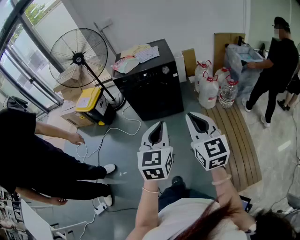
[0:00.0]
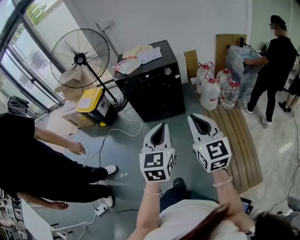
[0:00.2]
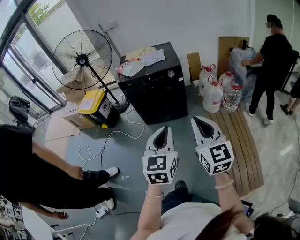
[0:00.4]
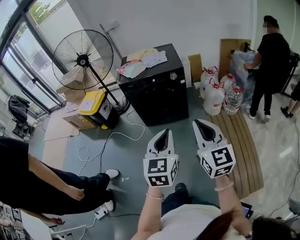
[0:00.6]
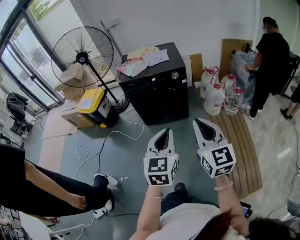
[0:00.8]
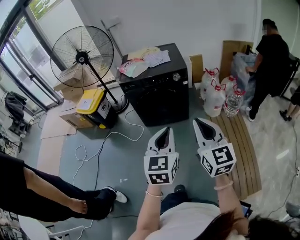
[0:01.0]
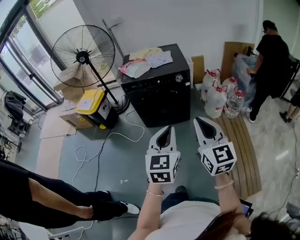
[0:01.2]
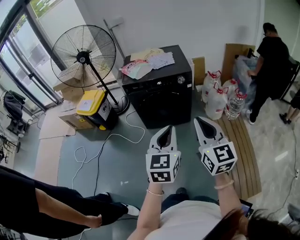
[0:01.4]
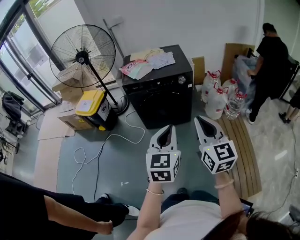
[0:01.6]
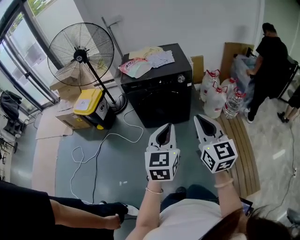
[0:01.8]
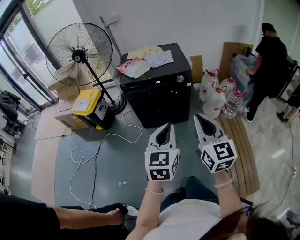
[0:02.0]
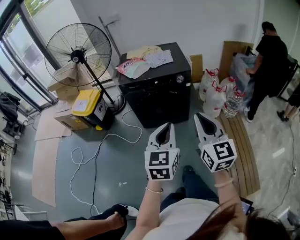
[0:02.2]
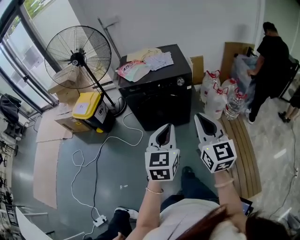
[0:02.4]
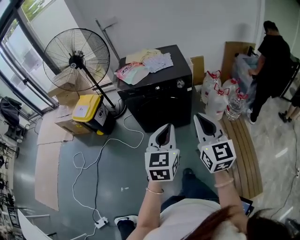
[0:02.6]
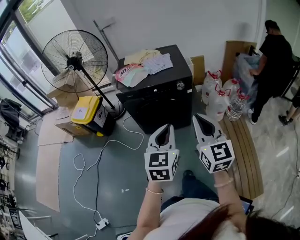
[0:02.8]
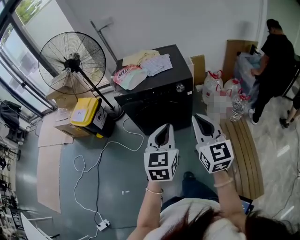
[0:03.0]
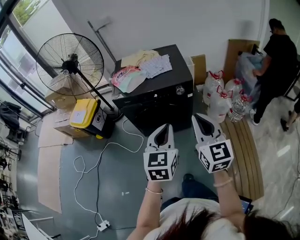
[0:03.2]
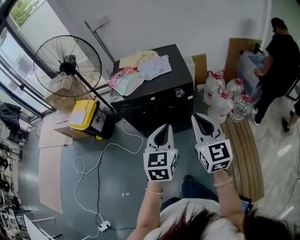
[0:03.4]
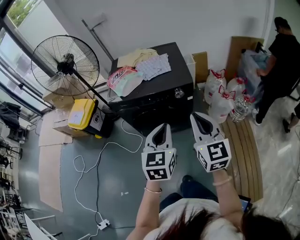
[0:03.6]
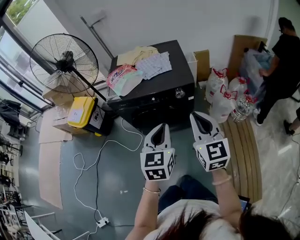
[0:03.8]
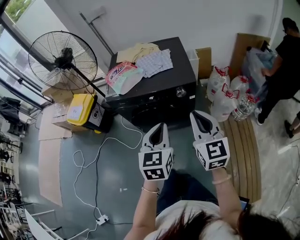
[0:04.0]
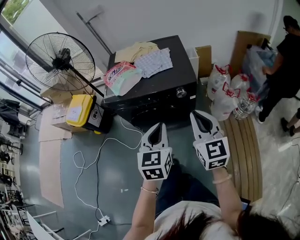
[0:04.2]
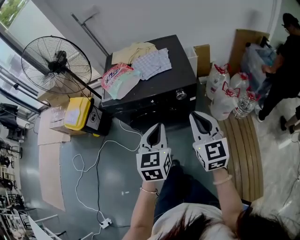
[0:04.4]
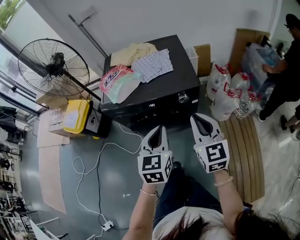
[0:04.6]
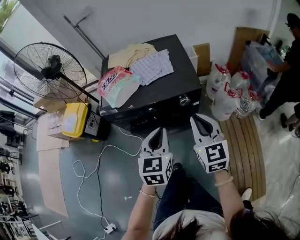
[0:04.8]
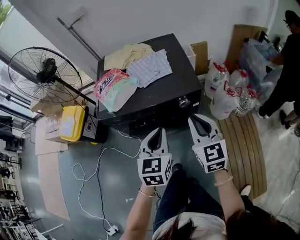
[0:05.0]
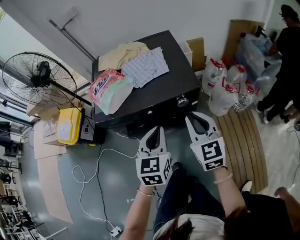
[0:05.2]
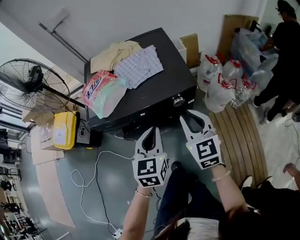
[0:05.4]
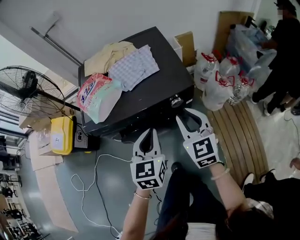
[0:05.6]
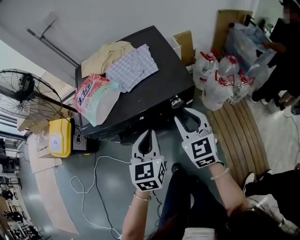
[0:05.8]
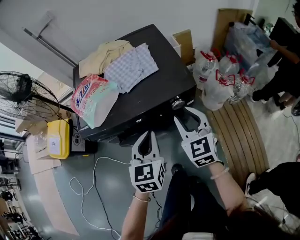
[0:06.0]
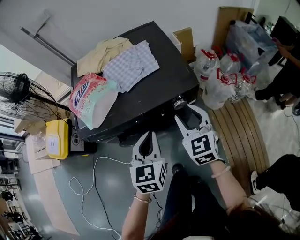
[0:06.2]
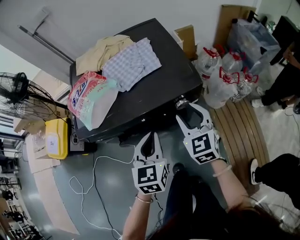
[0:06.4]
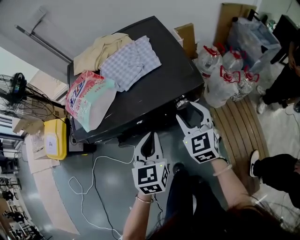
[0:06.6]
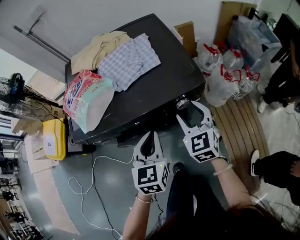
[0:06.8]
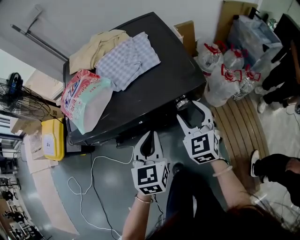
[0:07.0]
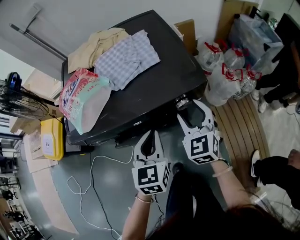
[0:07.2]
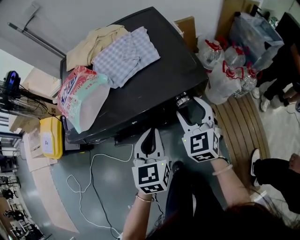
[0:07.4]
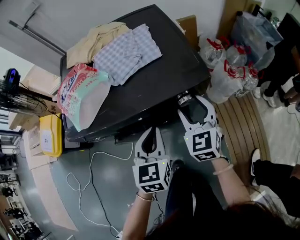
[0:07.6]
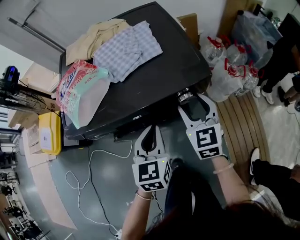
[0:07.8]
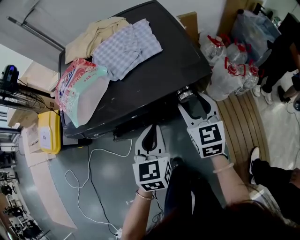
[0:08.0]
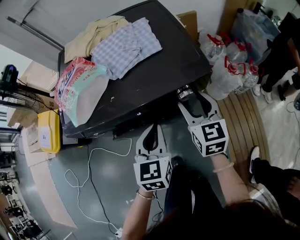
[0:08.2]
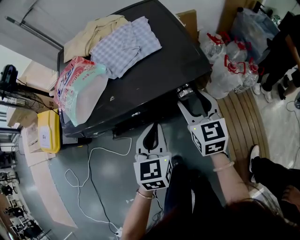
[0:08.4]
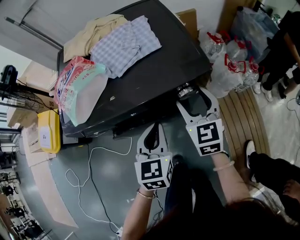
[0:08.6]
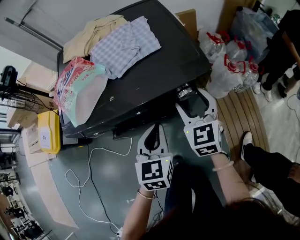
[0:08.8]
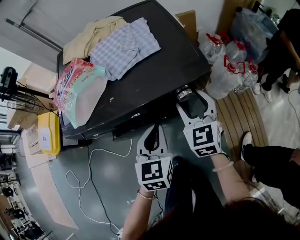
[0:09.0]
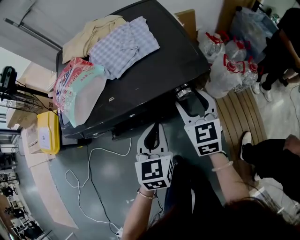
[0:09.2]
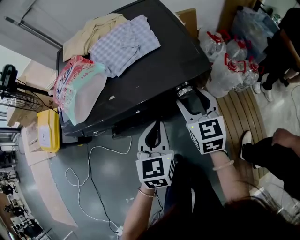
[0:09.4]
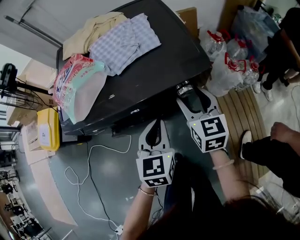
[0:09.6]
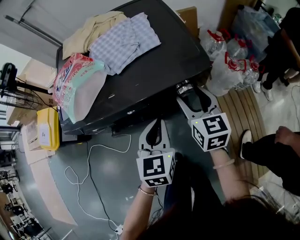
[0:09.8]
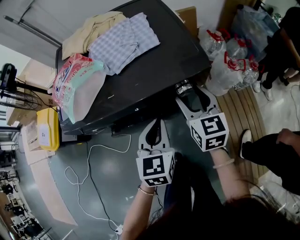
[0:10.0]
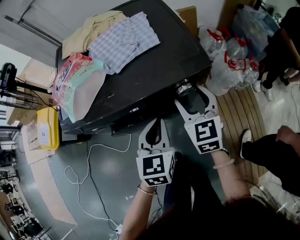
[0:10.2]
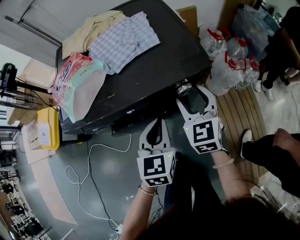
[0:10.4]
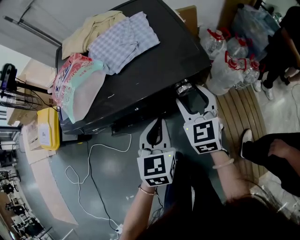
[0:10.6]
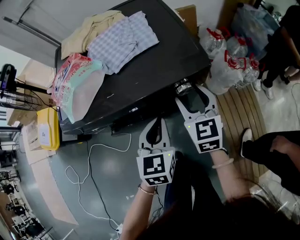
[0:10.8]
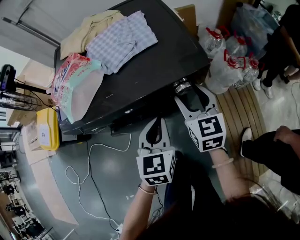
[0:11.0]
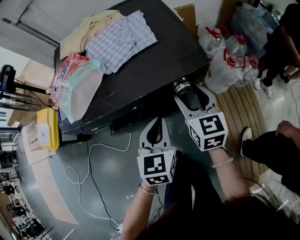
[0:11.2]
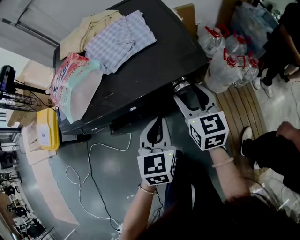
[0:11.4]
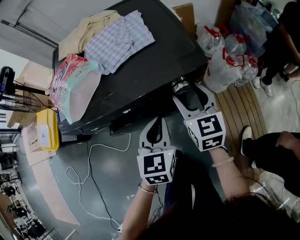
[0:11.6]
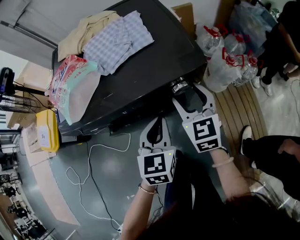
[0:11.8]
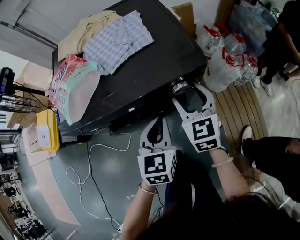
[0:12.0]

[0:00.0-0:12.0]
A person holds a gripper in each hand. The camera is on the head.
0:00.0 to 0:01.6: The two grippers go about 15 cm forward and to the left.
0:01.6 to 0:03.0: Both grippers move forward, about 15 cm.
0:03.0 to 0:04.4: The right gripper is displaced forward and downward by about 20 cm, while the left gripper travels forward by approximately 20 cm.
0:04.4 to 0:06.0: The two grippers go approximately 20 cm forward and downward. The right gripper opens its fingers.
0:06.0 to 0:07.6: The right gripper heads downward and forward, covering about 10 cm, and opens. The left gripper is displaced downward by about 10 cm.
0:07.6 to 0:09.0: The grippers make only small movements.

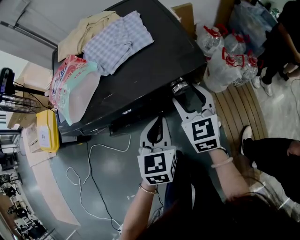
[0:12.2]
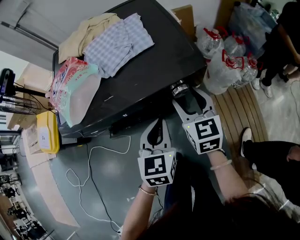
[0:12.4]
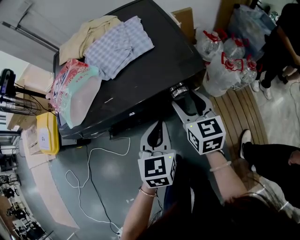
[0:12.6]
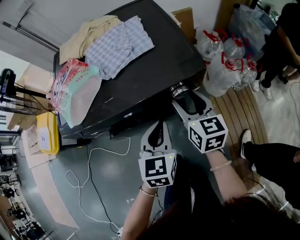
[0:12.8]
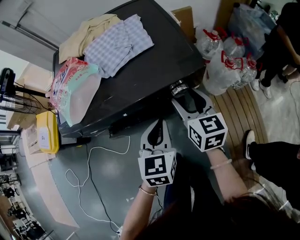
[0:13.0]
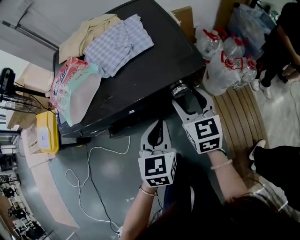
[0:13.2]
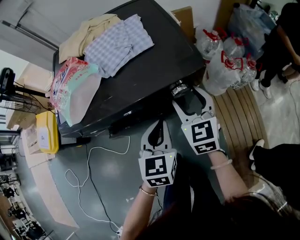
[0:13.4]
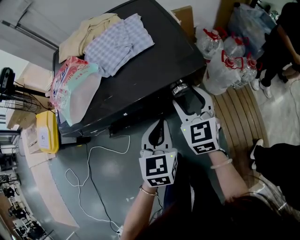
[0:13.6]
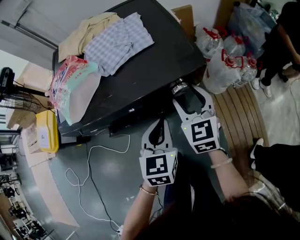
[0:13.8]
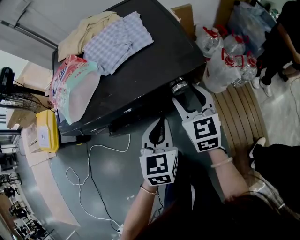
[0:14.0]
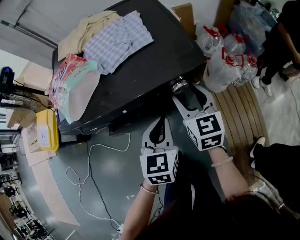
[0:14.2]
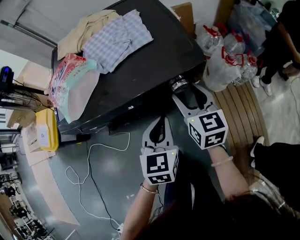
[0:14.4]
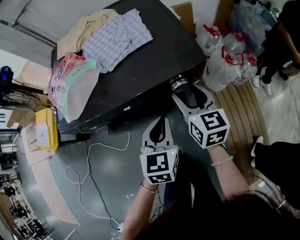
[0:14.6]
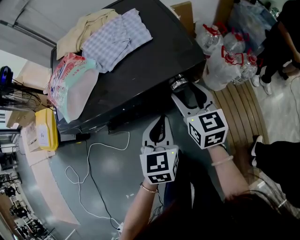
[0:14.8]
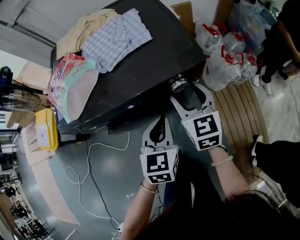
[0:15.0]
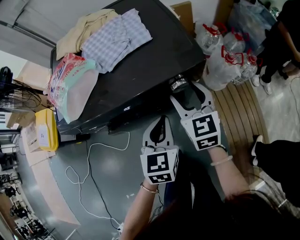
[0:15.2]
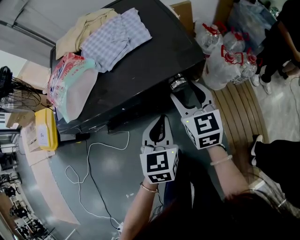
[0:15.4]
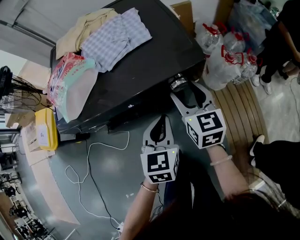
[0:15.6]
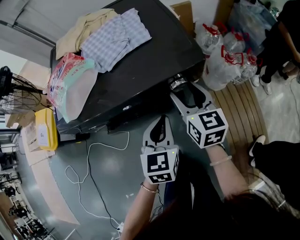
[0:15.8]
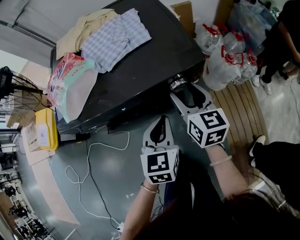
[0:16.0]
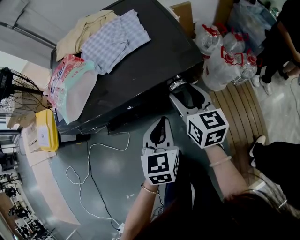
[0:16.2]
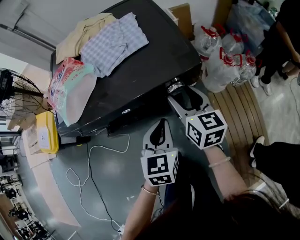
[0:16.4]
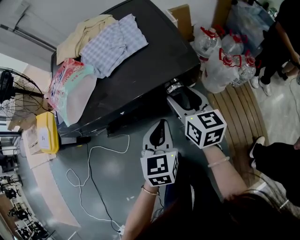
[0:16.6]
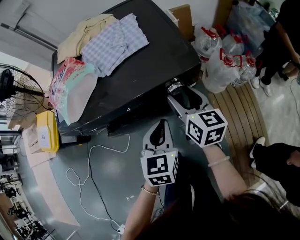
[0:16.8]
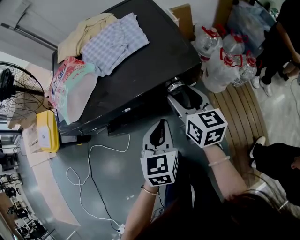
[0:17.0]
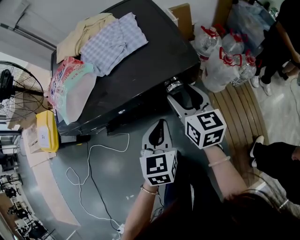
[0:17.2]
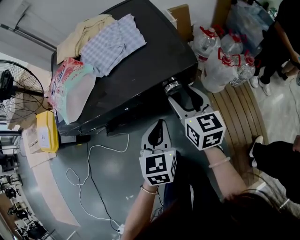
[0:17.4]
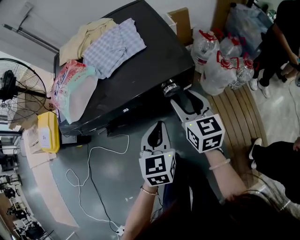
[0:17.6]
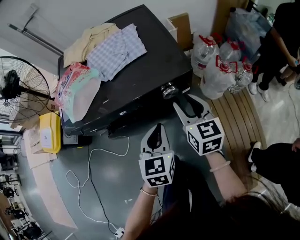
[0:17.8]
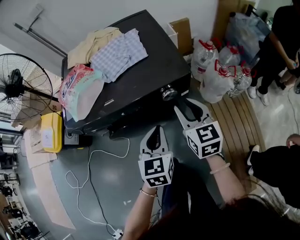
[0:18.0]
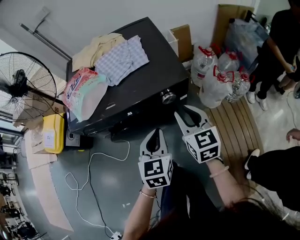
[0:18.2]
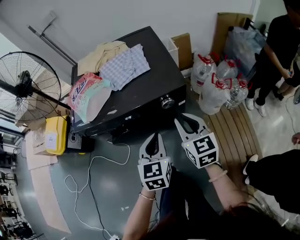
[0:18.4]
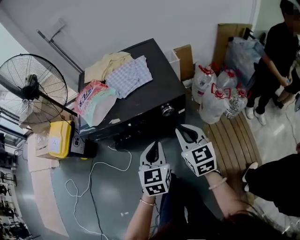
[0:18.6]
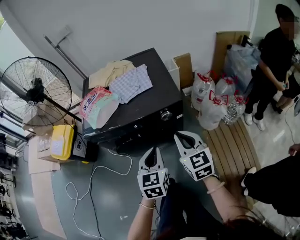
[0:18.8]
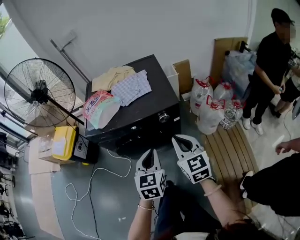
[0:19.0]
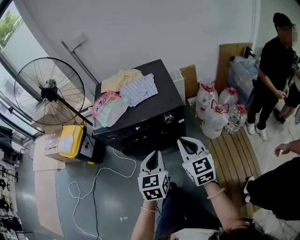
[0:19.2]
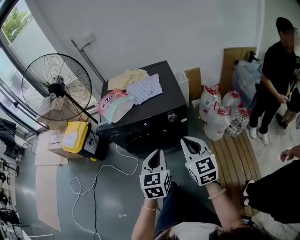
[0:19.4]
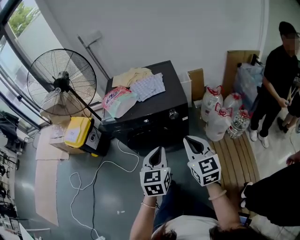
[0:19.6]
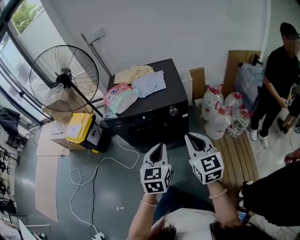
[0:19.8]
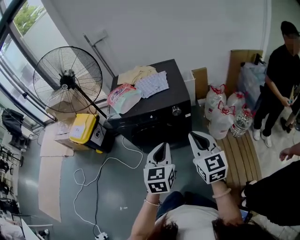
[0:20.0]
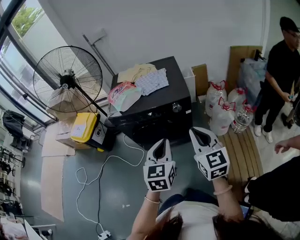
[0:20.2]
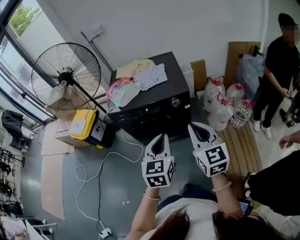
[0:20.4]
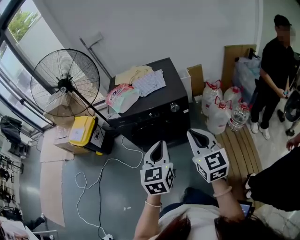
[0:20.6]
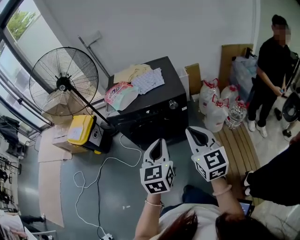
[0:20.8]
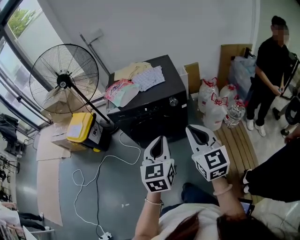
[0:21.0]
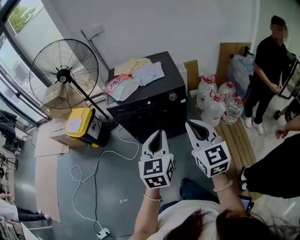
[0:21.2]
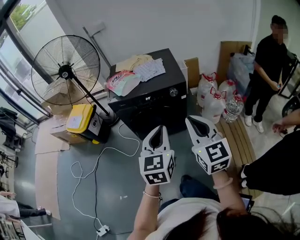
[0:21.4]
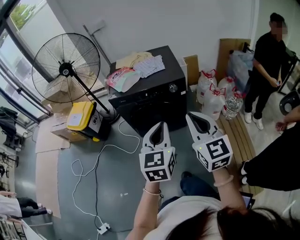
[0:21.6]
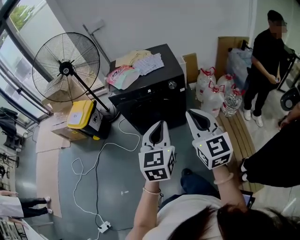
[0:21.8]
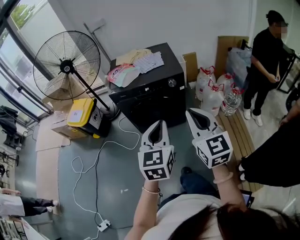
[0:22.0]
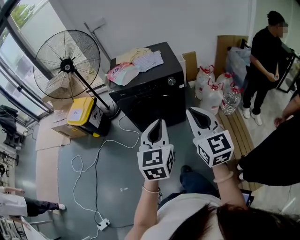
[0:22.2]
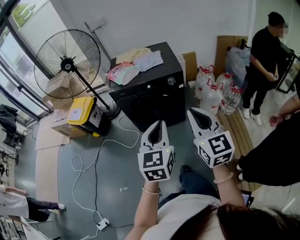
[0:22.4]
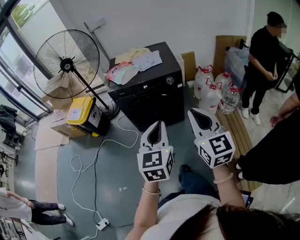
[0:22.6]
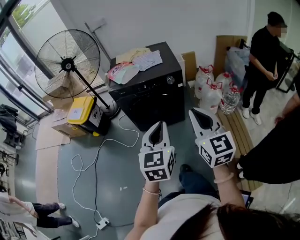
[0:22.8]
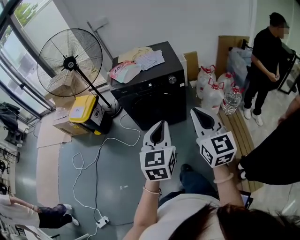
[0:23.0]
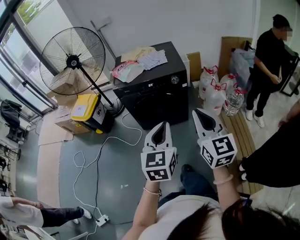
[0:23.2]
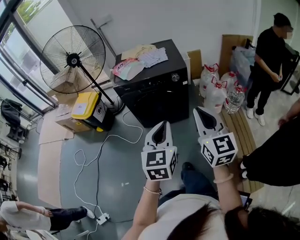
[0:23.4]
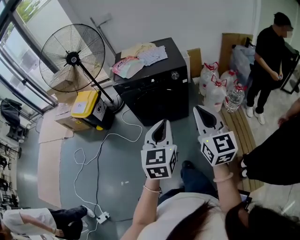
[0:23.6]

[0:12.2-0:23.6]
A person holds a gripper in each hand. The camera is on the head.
0:15.0 to 0:16.4: The right gripper swivels approximately 20 degrees.
0:16.4 to 0:17.8: There are only small adjustments of the grippers.
0:17.8 to 0:19.4: The right gripper moves backward and upward, some 25 cm, and closes its fingers. The left gripper goes some 20 cm upward and backward.
0:19.4 to 0:20.8: The right gripper heads backward and upward, covering roughly 15 cm, while the left gripper goes some 10 cm upward and backward.
0:20.8 to 0:22.2: Both grippers move backward, some 15 cm.
0:22.2 to 0:23.6: The grippers stay close to where they were, moving slightly.

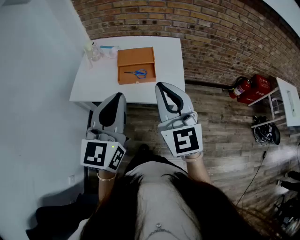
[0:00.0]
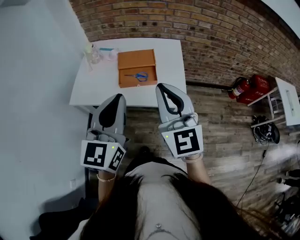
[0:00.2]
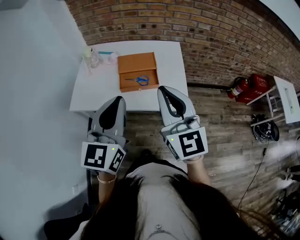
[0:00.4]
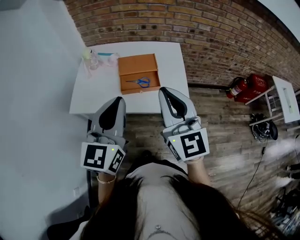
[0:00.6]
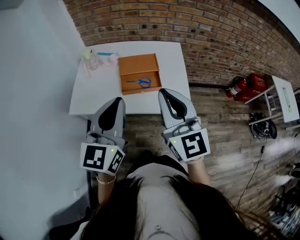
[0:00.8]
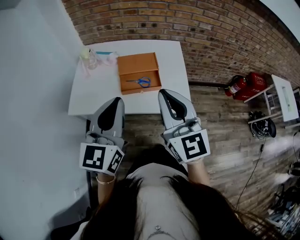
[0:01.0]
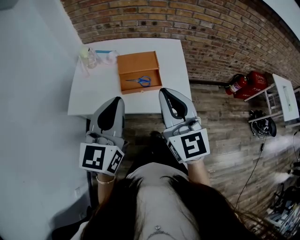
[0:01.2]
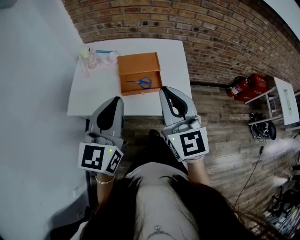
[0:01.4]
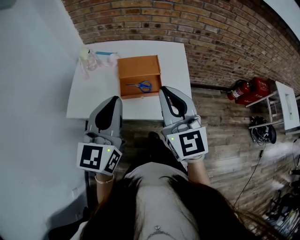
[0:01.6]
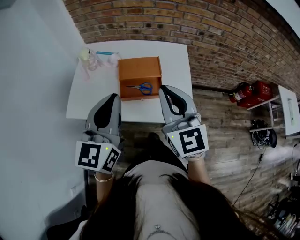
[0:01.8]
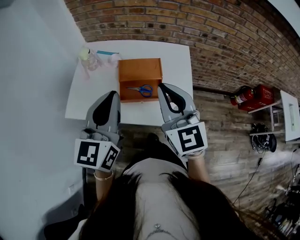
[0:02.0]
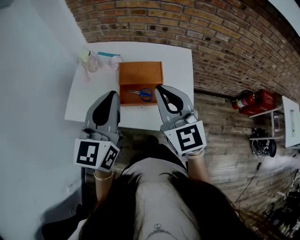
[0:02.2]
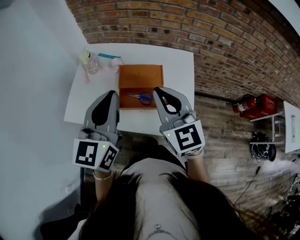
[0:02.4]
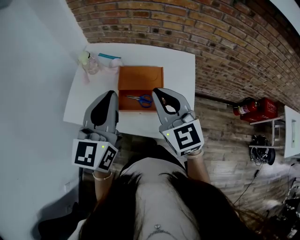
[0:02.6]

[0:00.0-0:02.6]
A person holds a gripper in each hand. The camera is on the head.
0:00.0 to 0:01.2: The grippers both shift forward and to the left by roughly 10 cm.
0:01.2 to 0:02.6: The grippers both shift forward by roughly 15 cm.
